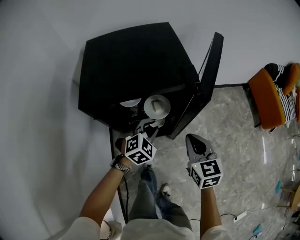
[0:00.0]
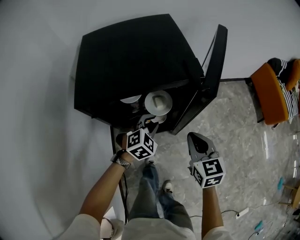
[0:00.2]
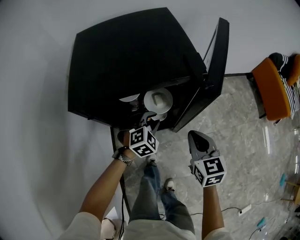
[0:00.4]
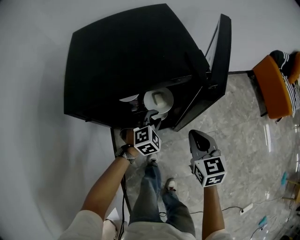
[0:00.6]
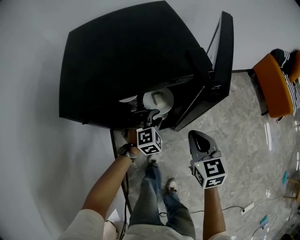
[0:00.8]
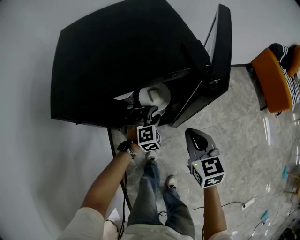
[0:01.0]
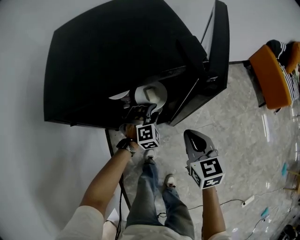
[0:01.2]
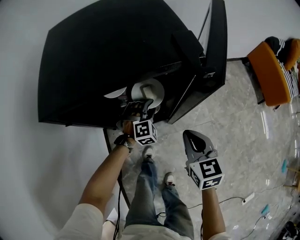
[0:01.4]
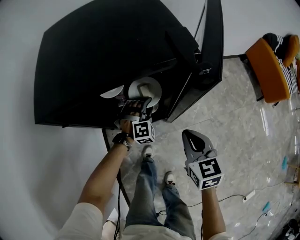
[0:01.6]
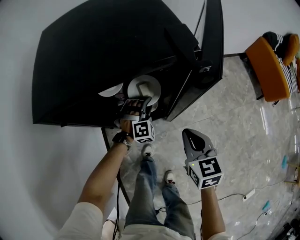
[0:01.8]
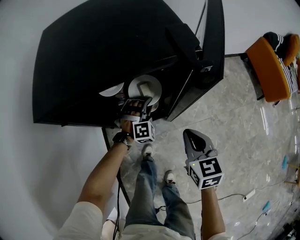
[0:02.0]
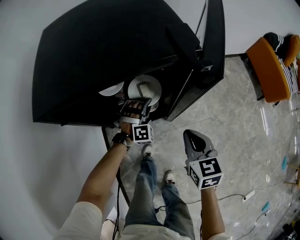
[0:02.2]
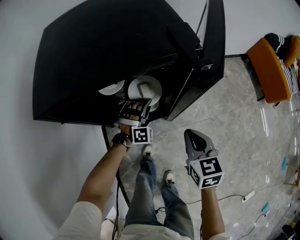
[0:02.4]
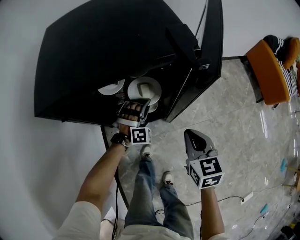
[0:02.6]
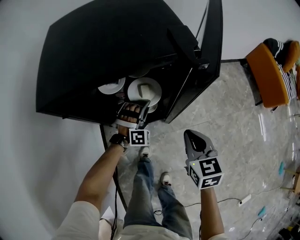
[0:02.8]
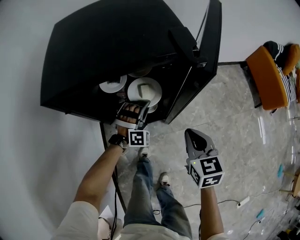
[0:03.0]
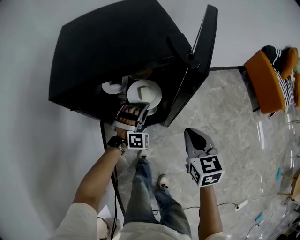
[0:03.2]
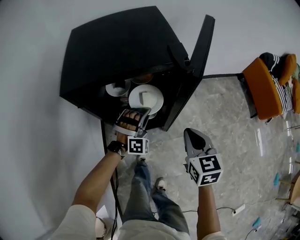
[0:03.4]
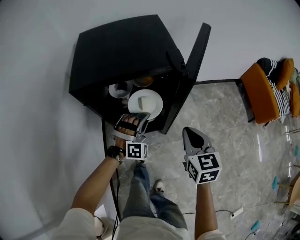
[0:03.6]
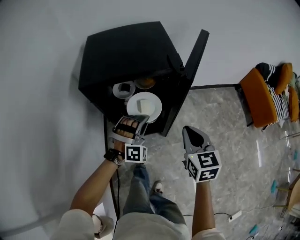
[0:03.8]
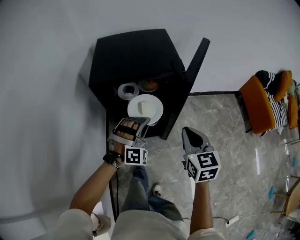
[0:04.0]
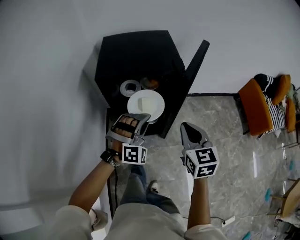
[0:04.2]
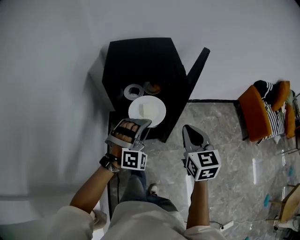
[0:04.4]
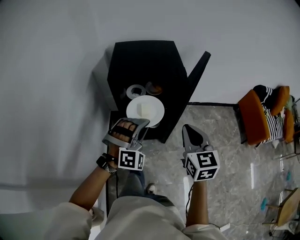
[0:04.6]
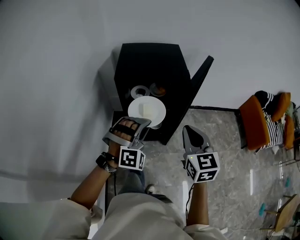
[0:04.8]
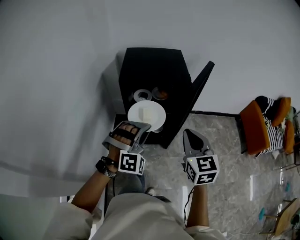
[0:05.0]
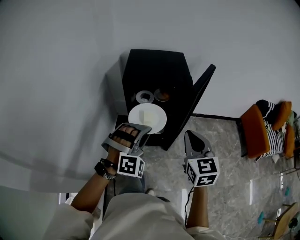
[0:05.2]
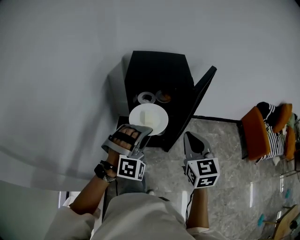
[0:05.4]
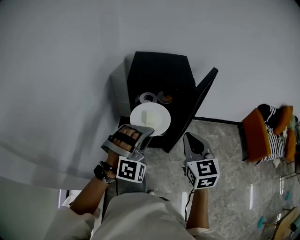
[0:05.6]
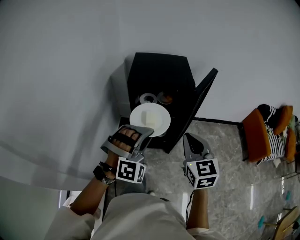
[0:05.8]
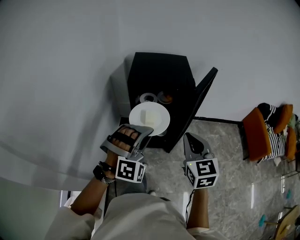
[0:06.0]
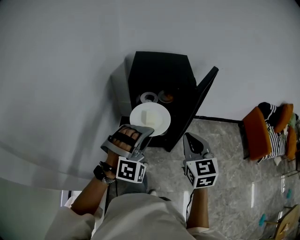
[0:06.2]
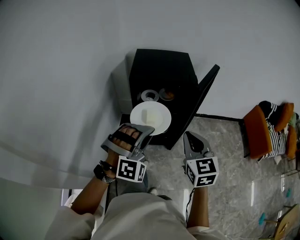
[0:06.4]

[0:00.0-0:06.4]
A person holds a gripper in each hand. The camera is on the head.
0:00.0 to 0:01.6: The right gripper travels downward by some 10 cm. Meanwhile the left gripper goes approximately 20 cm downward and forward, and turns by roughly 30 degrees.
0:01.6 to 0:03.2: The left gripper goes about 10 cm upward, and closes up.
0:03.2 to 0:04.8: The grippers both shift upward and backward by about 35 cm. The right gripper changes its angle by about 20 degrees.
0:04.8 to 0:06.4: The left gripper heads backward and upward, covering approximately 10 cm.

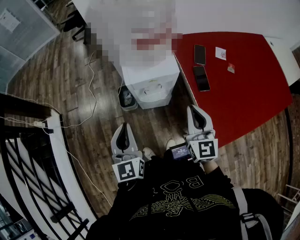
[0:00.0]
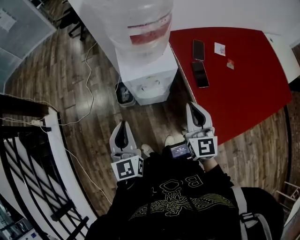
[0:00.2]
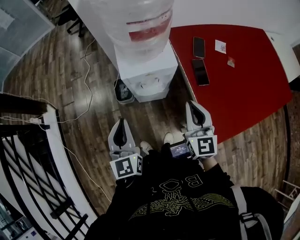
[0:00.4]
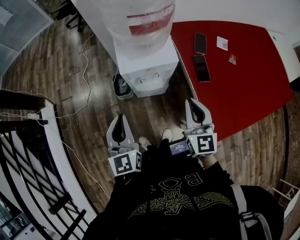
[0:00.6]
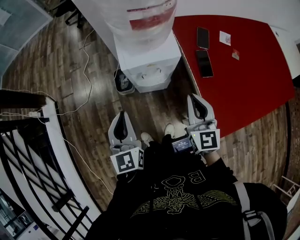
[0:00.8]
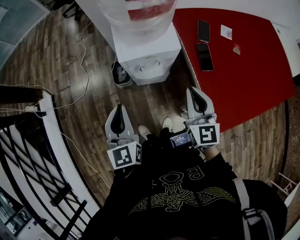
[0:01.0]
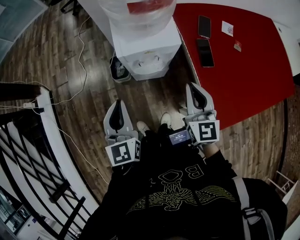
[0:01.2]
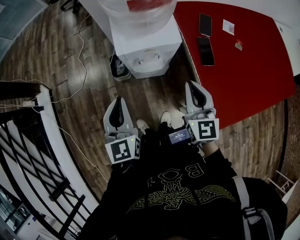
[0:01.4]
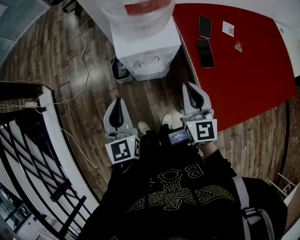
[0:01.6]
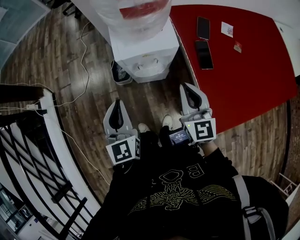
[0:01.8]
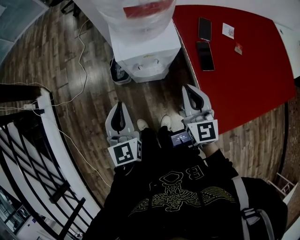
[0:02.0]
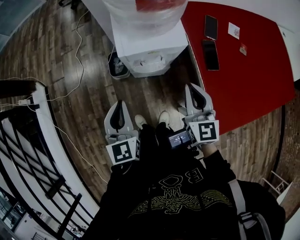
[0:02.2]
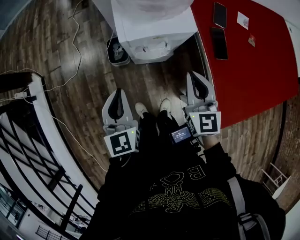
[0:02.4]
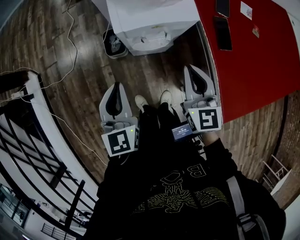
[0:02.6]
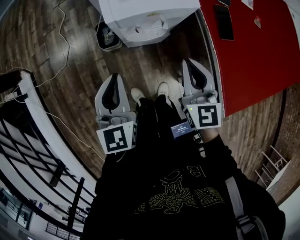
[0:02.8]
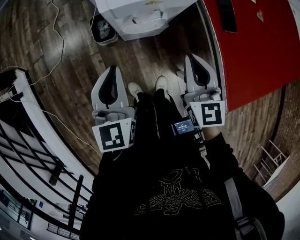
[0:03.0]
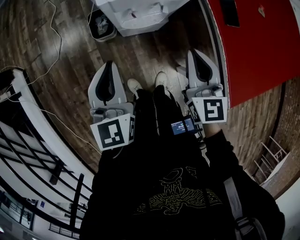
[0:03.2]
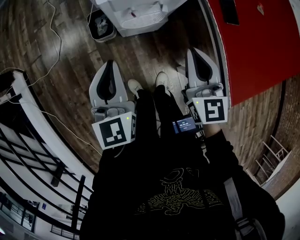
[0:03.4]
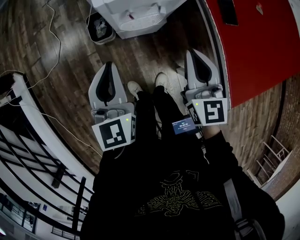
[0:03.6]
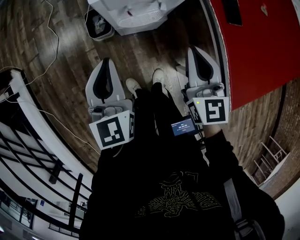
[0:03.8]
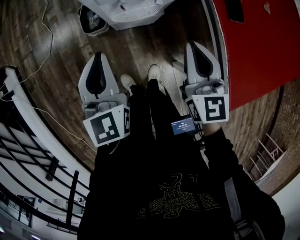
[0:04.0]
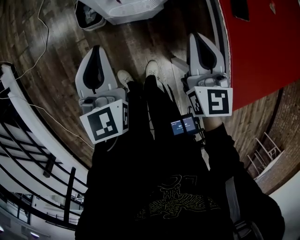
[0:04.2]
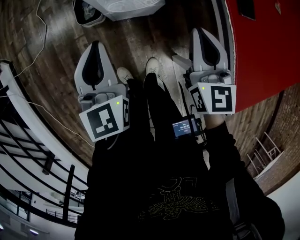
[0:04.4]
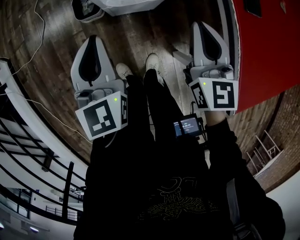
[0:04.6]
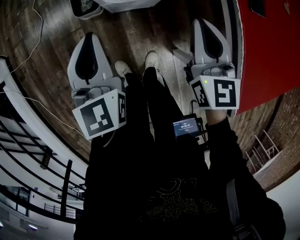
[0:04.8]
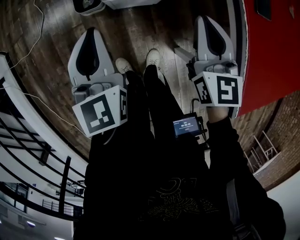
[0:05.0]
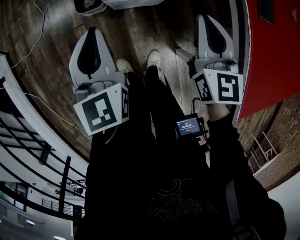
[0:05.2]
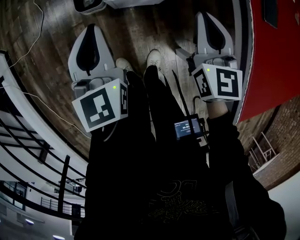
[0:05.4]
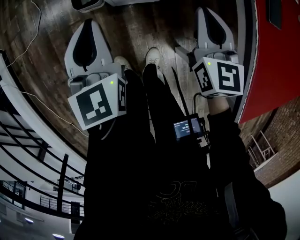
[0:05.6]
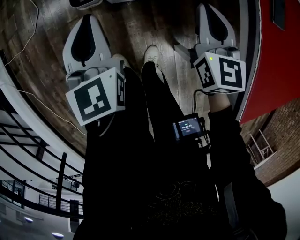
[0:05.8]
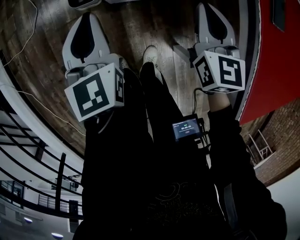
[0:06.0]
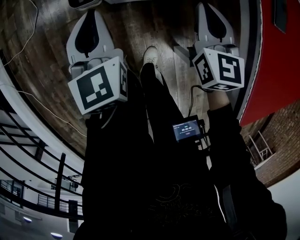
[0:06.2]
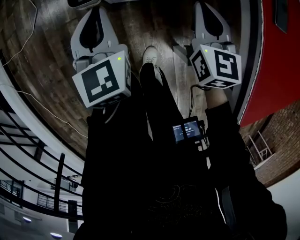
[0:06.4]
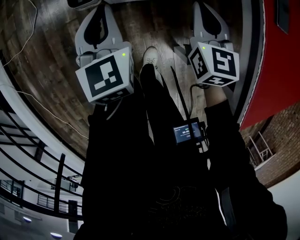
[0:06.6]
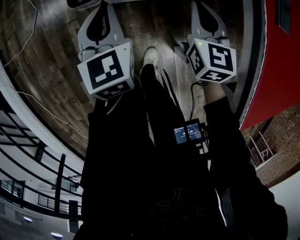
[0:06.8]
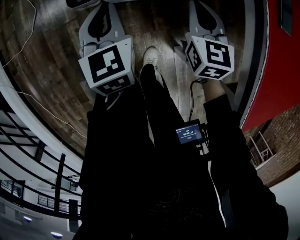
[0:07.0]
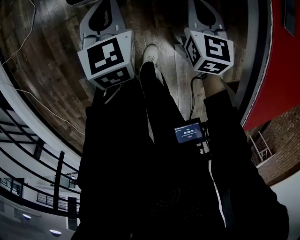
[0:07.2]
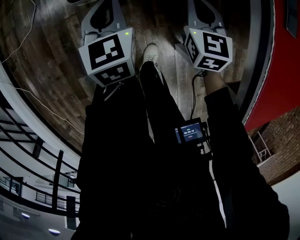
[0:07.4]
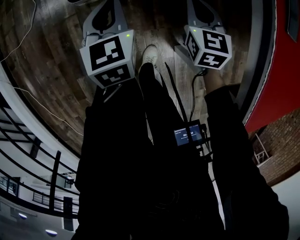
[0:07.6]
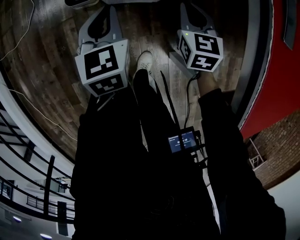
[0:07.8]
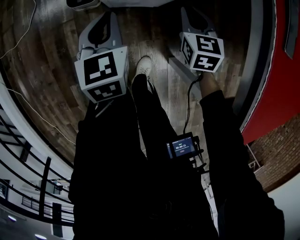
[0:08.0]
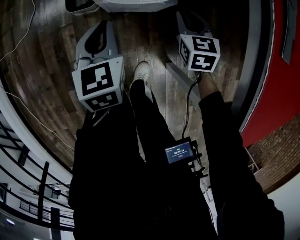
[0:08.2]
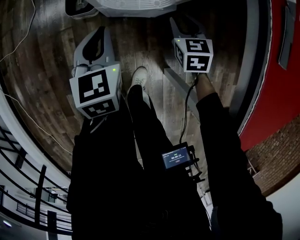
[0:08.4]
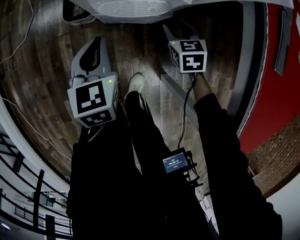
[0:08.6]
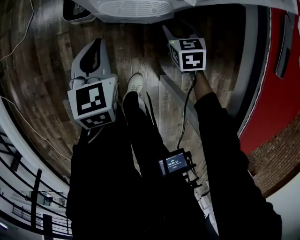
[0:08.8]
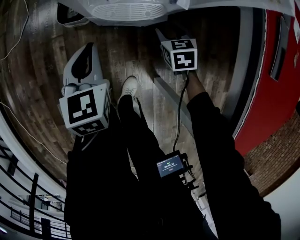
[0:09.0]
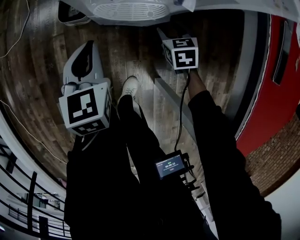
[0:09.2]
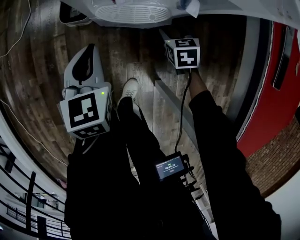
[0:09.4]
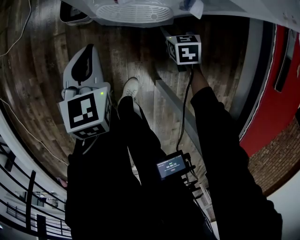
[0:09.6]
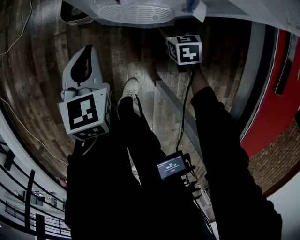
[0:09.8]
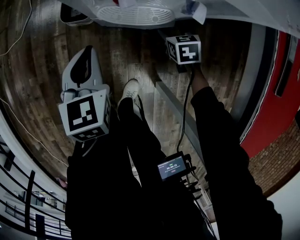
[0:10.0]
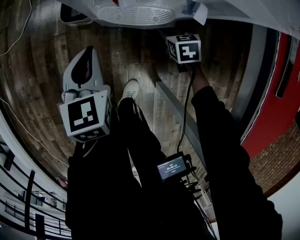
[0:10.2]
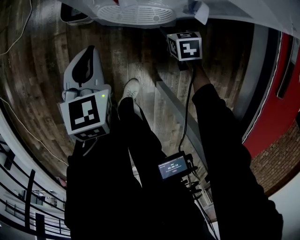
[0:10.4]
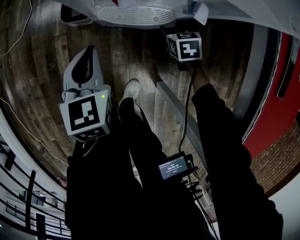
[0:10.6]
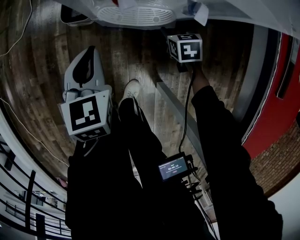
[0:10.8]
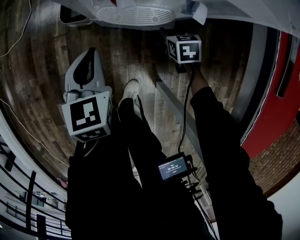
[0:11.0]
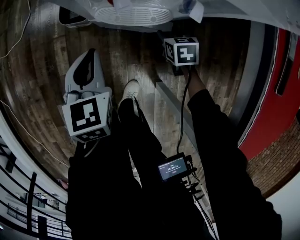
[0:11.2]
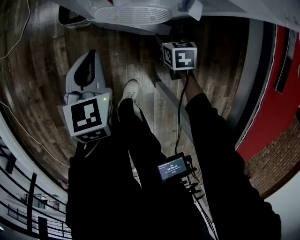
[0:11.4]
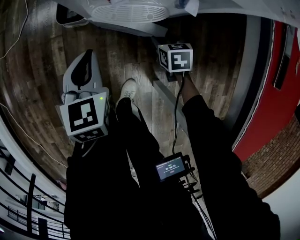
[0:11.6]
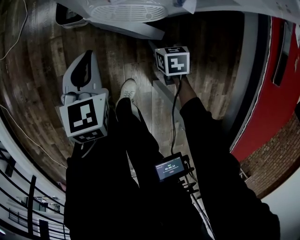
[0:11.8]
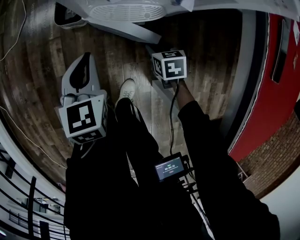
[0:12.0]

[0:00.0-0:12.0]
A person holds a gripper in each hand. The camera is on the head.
0:00.0 to 0:01.6: The left gripper ends up about 5 cm from where it was. Meanwhile the right gripper changes place by approximately 5 cm.
0:01.6 to 0:03.0: The grippers both shift downward by approximately 10 cm.
0:03.0 to 0:04.4: The grippers both shift downward by some 10 cm.
0:04.4 to 0:06.0: The grippers both shift downward by roughly 10 cm.
0:06.0 to 0:07.6: Both grippers travel together downward, about 10 cm.
0:07.6 to 0:09.0: The right gripper shifts approximately 10 cm downward, rotates approximately 20 degrees, and opens up.
0:09.0 to 0:10.4: The right gripper moves downward, about 5 cm.
0:10.4 to 0:12.0: The right gripper shifts some 10 cm backward.

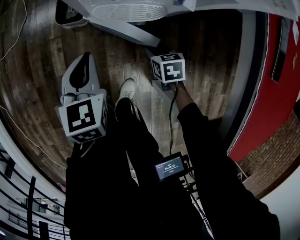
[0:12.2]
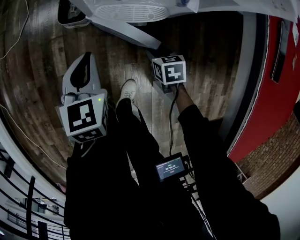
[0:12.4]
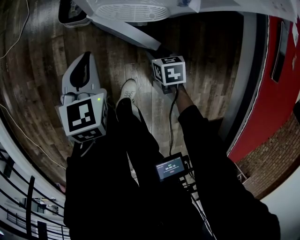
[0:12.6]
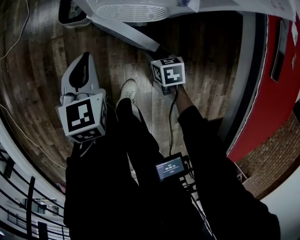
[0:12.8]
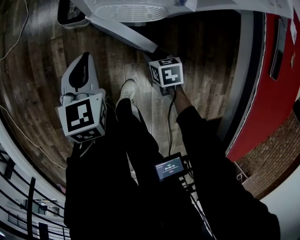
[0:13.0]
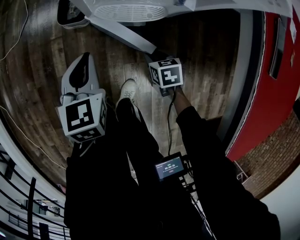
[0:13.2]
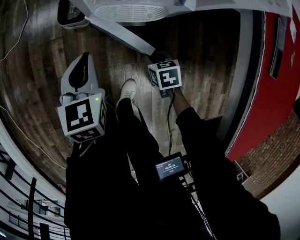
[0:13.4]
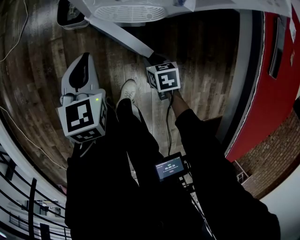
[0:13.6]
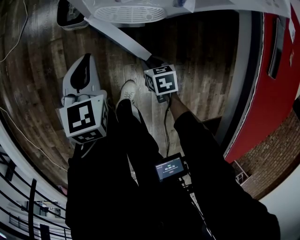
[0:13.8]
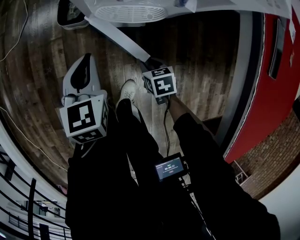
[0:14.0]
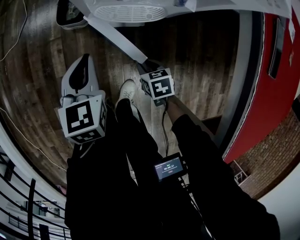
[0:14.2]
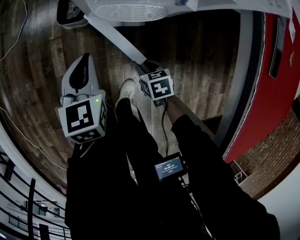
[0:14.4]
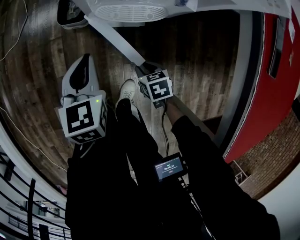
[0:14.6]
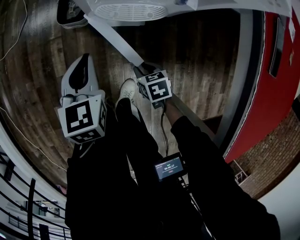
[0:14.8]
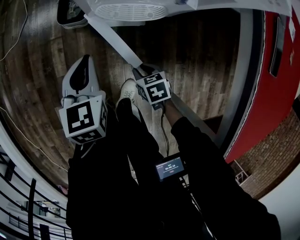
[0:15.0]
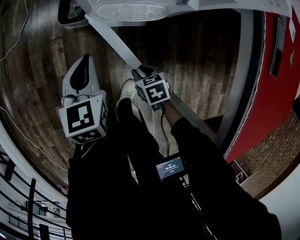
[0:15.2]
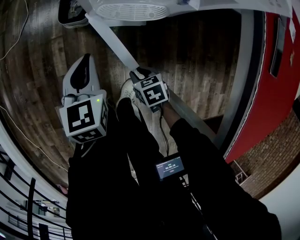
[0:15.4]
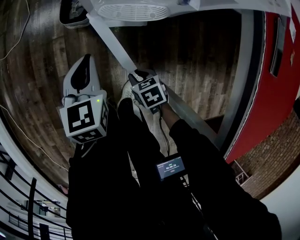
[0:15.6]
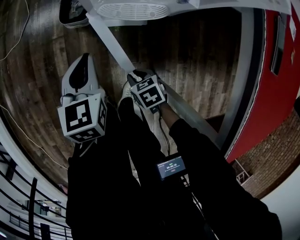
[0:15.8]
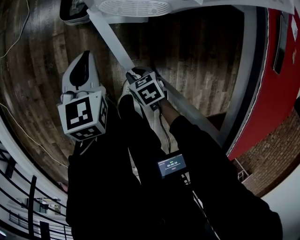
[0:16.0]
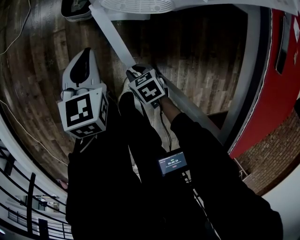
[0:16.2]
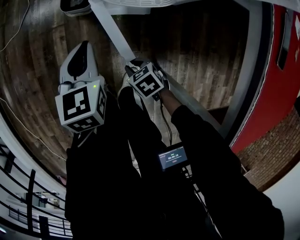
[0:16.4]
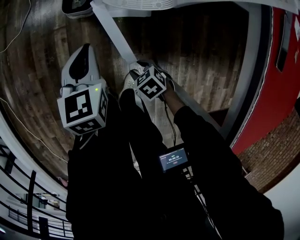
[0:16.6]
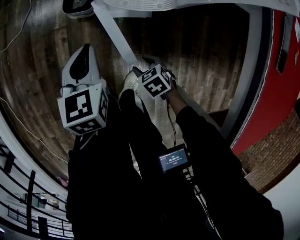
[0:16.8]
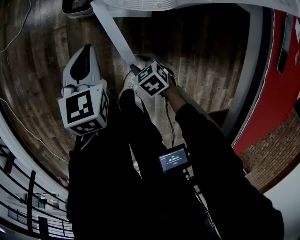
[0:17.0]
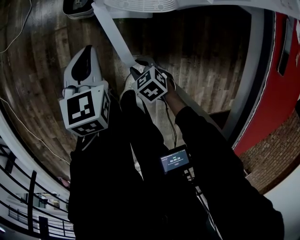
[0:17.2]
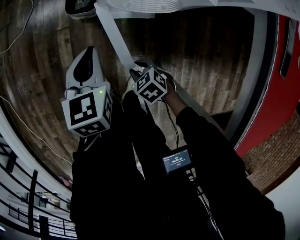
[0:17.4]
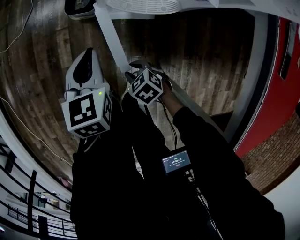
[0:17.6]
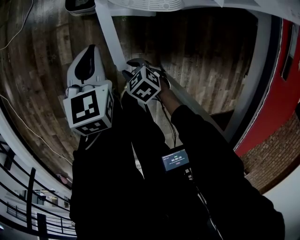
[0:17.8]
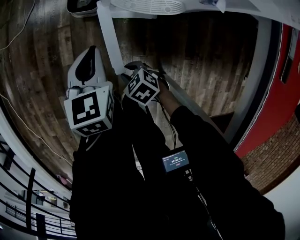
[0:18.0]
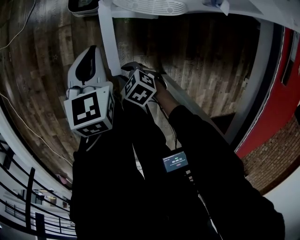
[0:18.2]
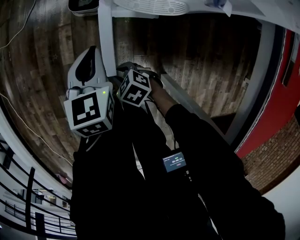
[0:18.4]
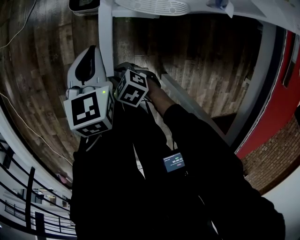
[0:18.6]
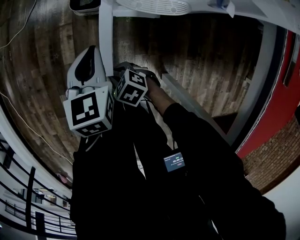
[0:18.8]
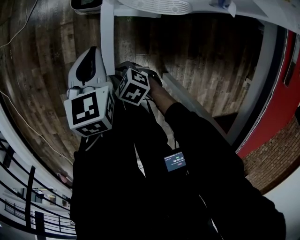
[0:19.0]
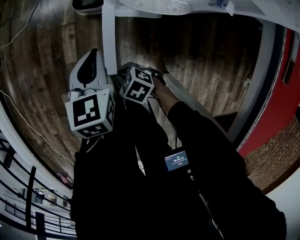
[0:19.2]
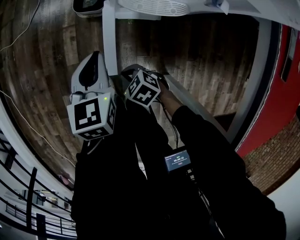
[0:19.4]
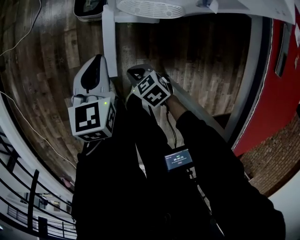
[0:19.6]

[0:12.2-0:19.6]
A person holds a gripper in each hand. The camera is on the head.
0:12.2 to 0:13.6: The grippers stay close to where they were, moving slightly.
0:13.6 to 0:15.2: The right gripper heads to the left, covering roughly 5 cm.
0:15.2 to 0:16.6: The right gripper moves roughly 5 cm, and changes its angle by some 20 degrees.
0:16.6 to 0:18.2: The right gripper shifts approximately 5 cm to the left.
0:18.2 to 0:19.6: The right gripper closes up.
